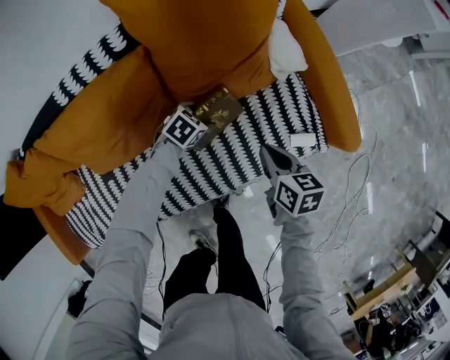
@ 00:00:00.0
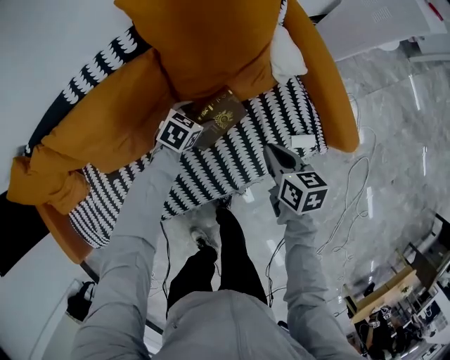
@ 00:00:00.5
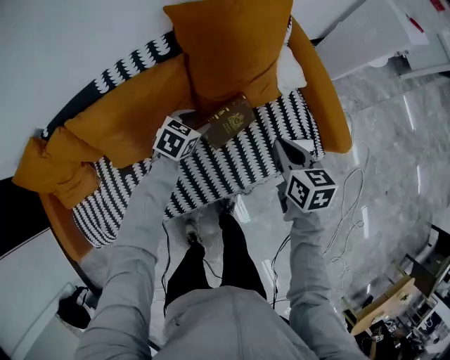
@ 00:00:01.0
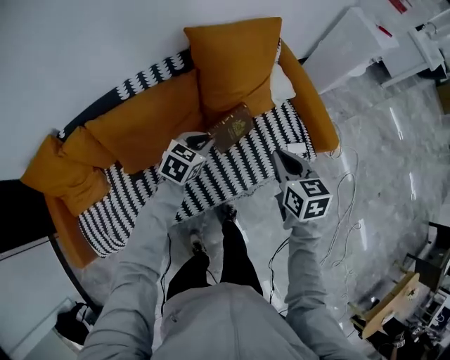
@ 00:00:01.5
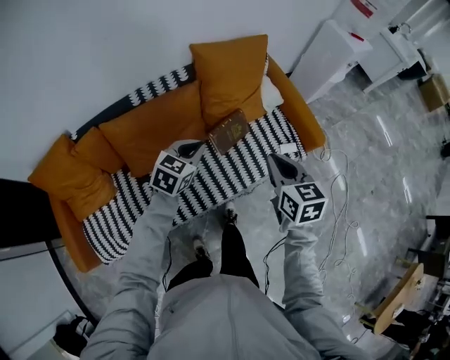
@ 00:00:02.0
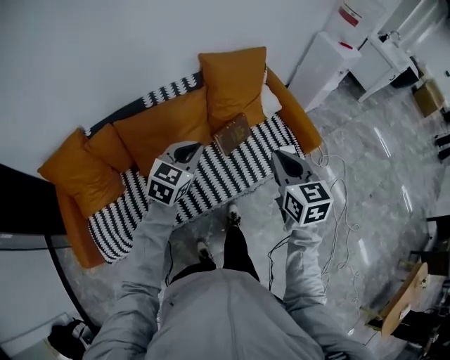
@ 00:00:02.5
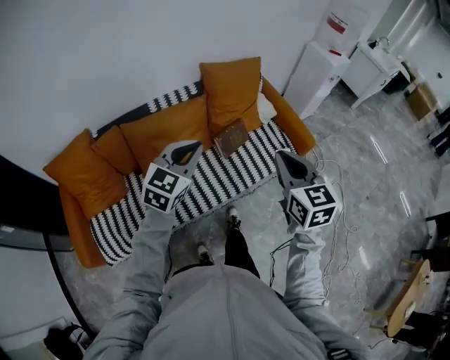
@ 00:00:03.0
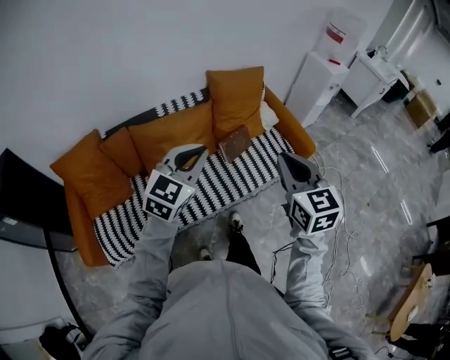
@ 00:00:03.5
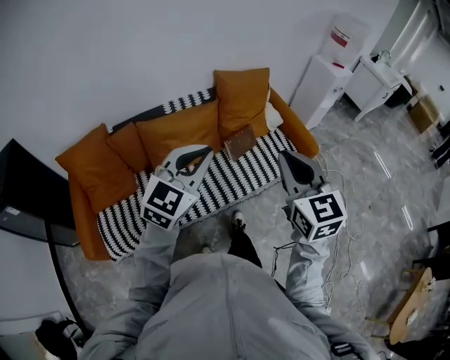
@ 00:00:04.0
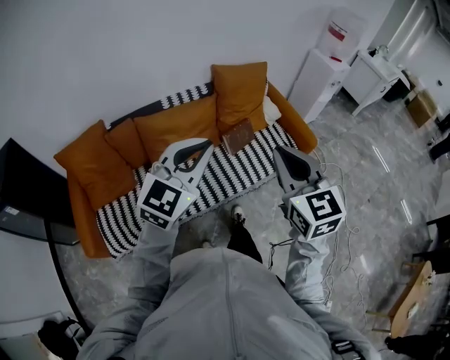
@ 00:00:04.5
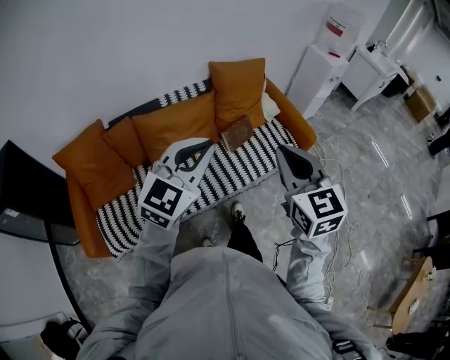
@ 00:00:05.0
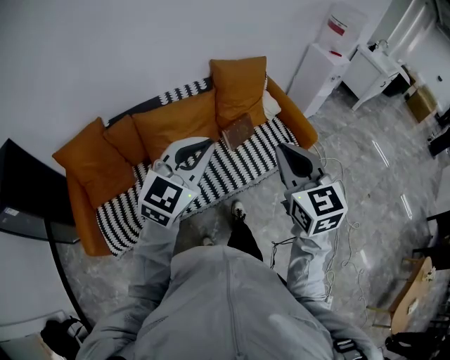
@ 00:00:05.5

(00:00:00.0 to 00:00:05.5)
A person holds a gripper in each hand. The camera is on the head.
00:00:00.0 - 00:00:02.0: The grippers both shift upward and backward by about 40 cm. The left gripper turns by roughly 30 degrees, and closes up, while the right gripper turns by roughly 30 degrees.
00:00:02.0 - 00:00:03.5: The grippers both shift upward and backward by approximately 30 cm. The left gripper turns by some 30 degrees, while the right gripper changes its angle by some 20 degrees.
00:00:03.5 - 00:00:05.5: Both grippers move backward, roughly 5 cm.

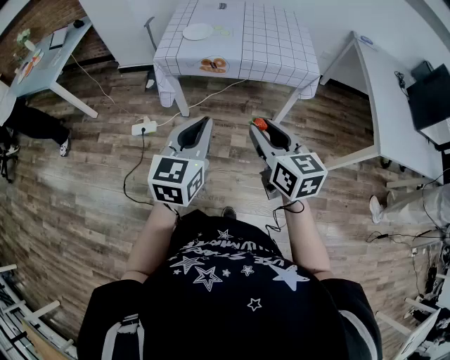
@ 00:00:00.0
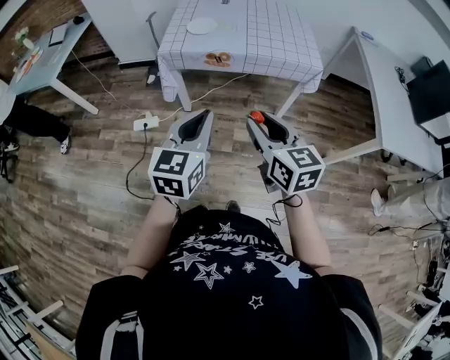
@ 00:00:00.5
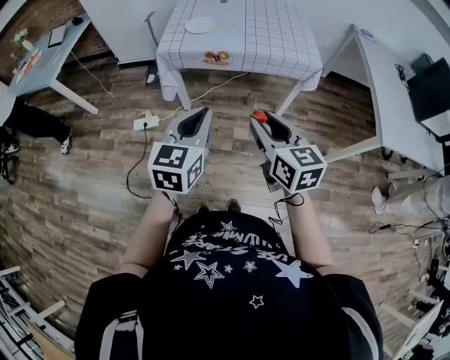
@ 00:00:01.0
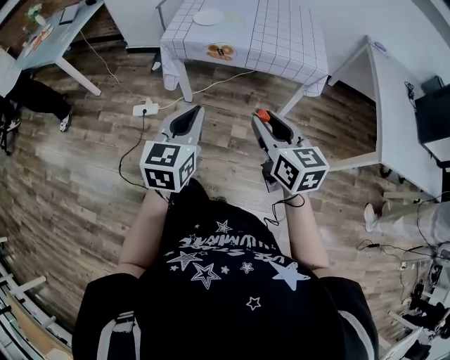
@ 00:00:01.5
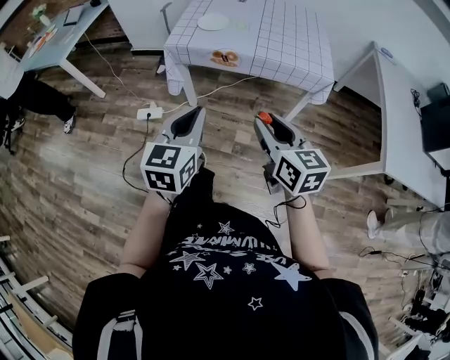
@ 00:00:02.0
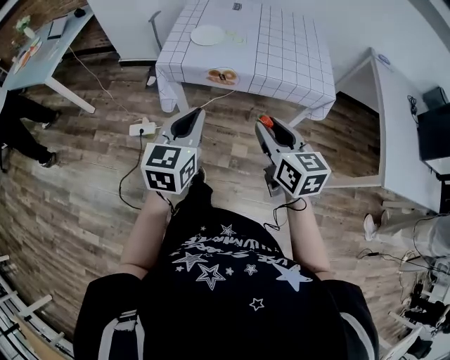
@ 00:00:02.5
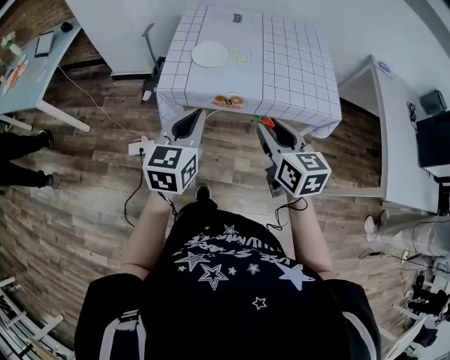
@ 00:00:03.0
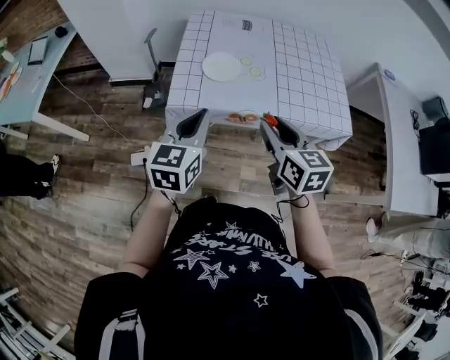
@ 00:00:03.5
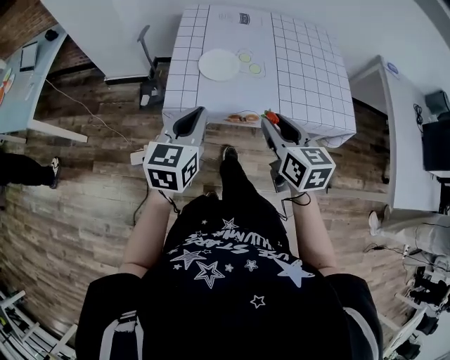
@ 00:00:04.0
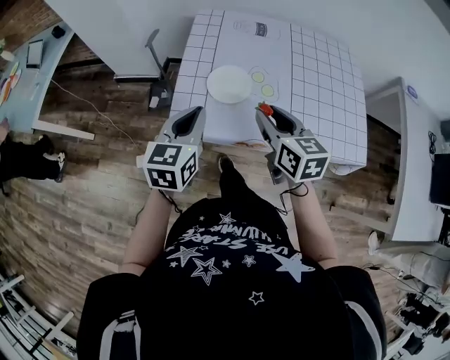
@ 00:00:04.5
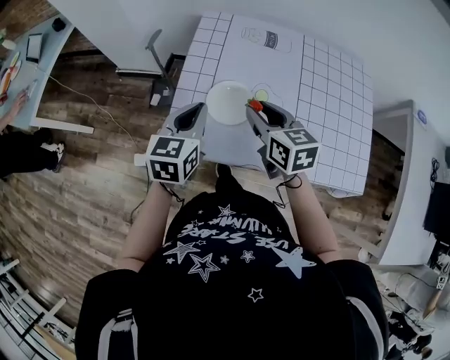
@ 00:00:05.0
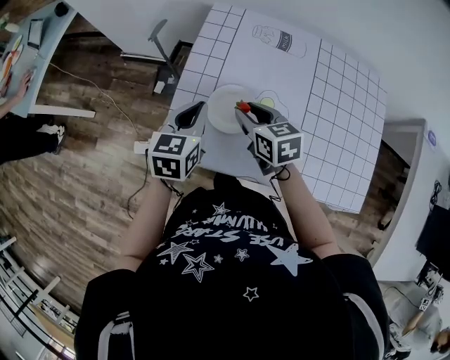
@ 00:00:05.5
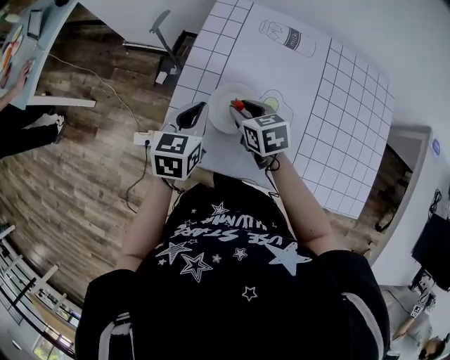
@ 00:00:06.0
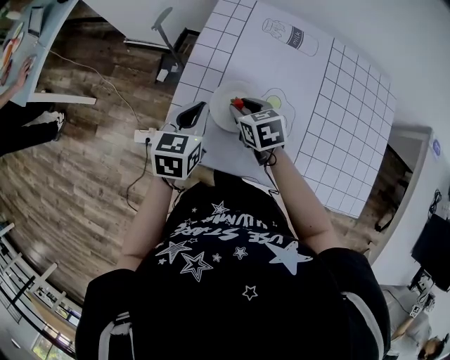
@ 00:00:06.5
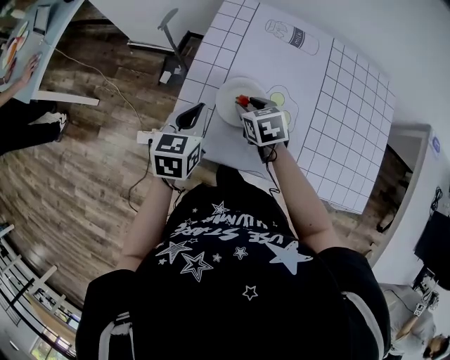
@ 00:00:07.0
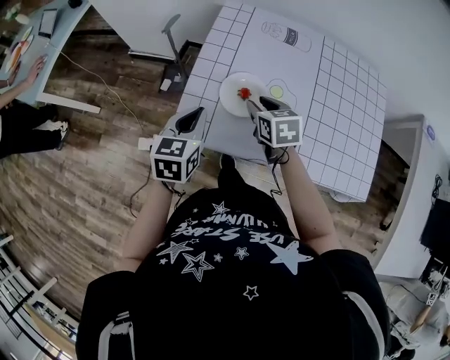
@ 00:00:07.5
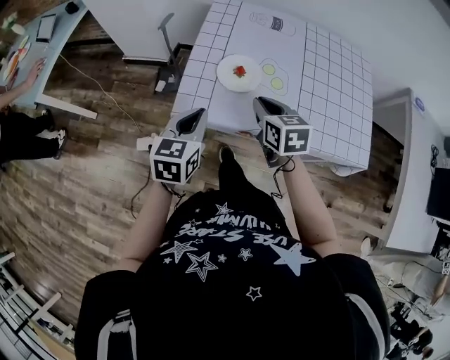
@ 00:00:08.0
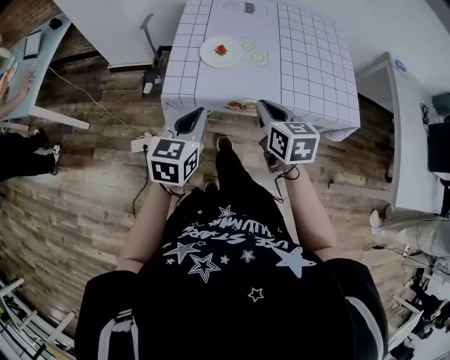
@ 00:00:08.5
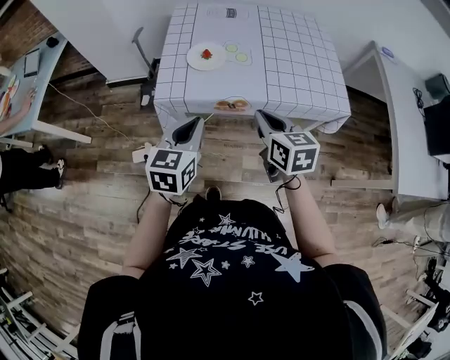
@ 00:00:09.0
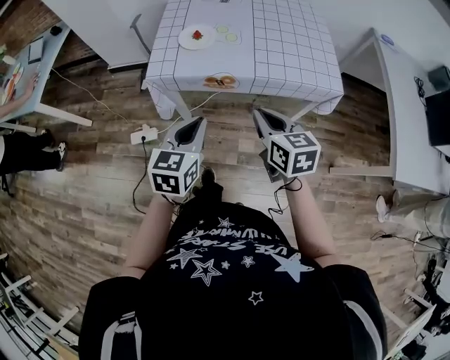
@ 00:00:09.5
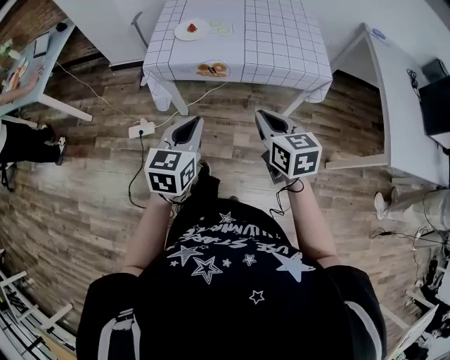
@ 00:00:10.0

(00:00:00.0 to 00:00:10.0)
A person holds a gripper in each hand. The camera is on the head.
00:00:00.0 - 00:00:02.0: The grippers make only small movements.
00:00:02.0 - 00:00:04.0: Both grippers move forward, some 35 cm.
00:00:04.0 - 00:00:06.0: Both grippers travel together forward and downward, some 30 cm. The left gripper rotates some 20 degrees. Meanwhile the right gripper rotates some 40 degrees.
00:00:06.0 - 00:00:08.0: The right gripper heads backward and upward, covering roughly 15 cm, swivels some 20 degrees, and closes up; the left gripper is displaced backward by approximately 15 cm.
00:00:08.0 - 00:00:10.0: The two grippers go roughly 35 cm backward and to the right.

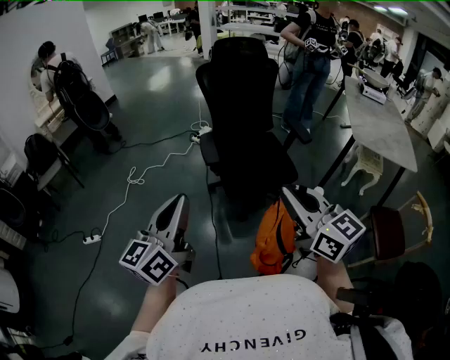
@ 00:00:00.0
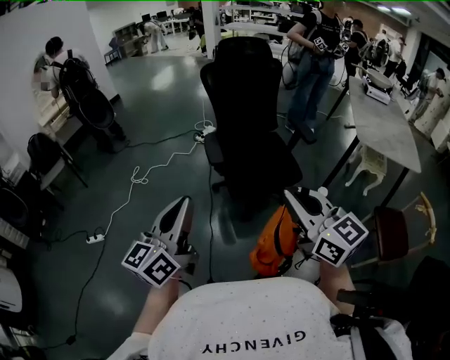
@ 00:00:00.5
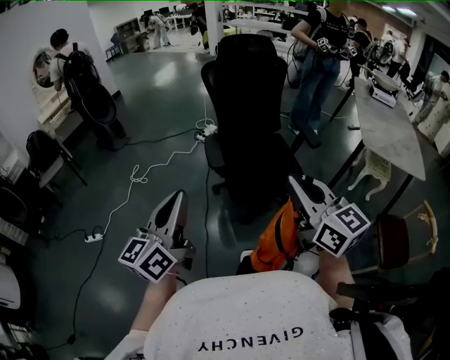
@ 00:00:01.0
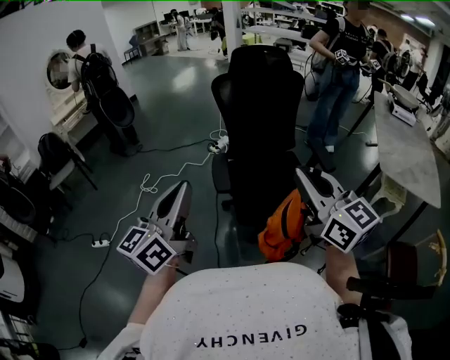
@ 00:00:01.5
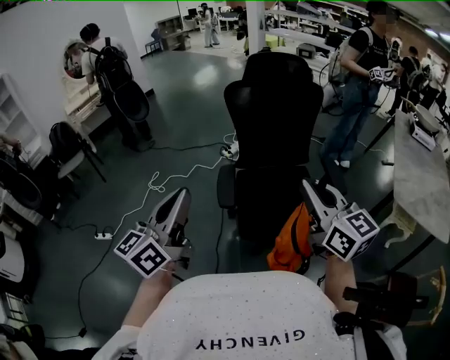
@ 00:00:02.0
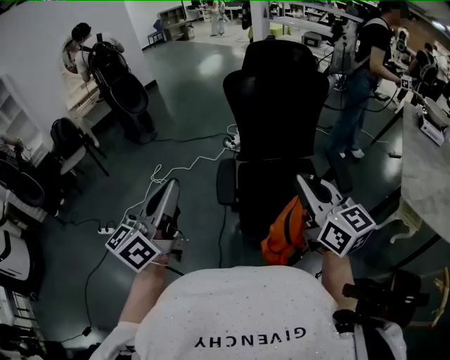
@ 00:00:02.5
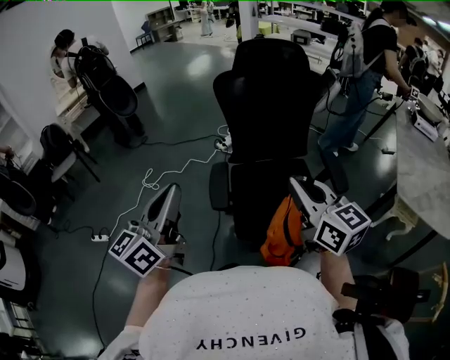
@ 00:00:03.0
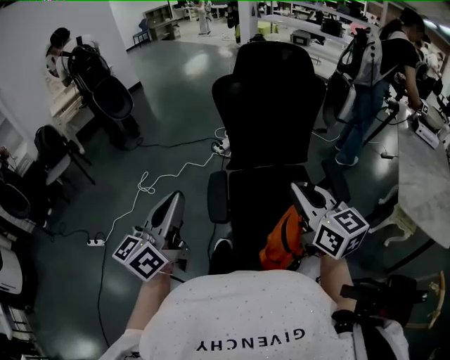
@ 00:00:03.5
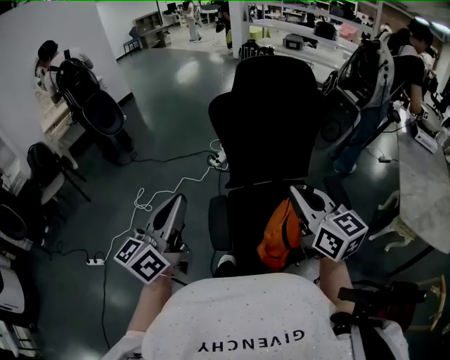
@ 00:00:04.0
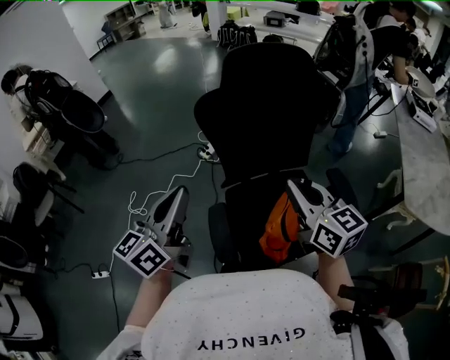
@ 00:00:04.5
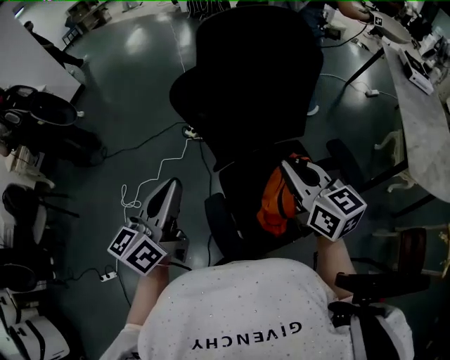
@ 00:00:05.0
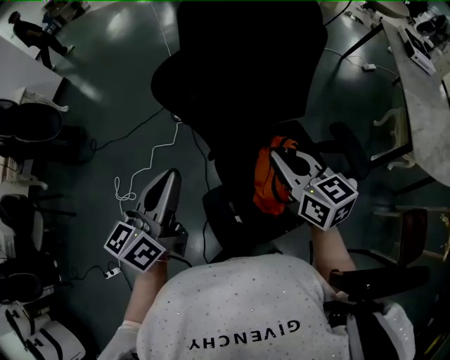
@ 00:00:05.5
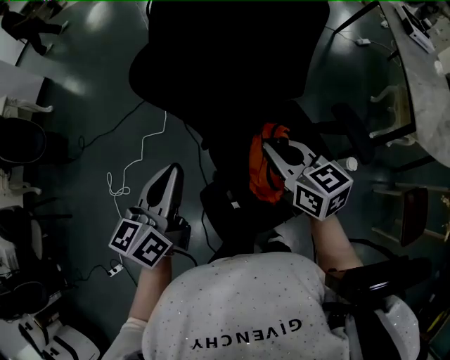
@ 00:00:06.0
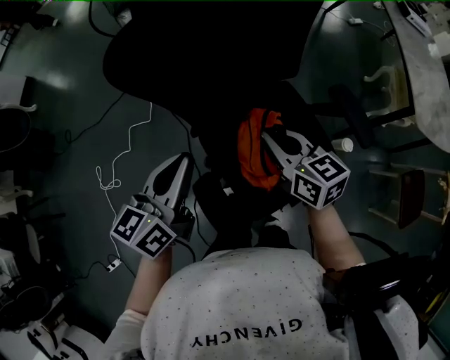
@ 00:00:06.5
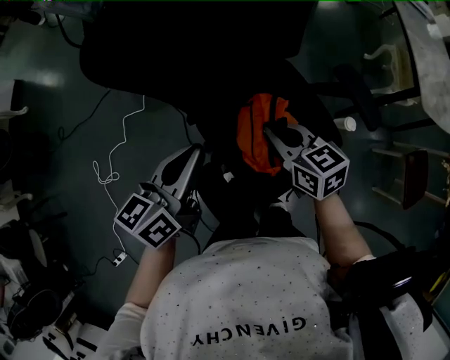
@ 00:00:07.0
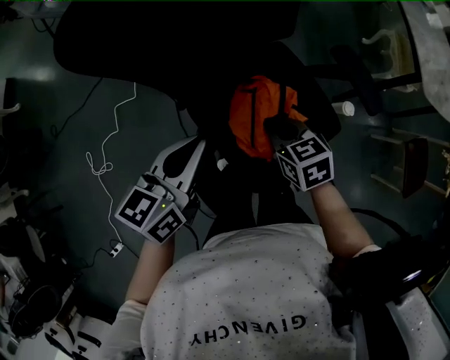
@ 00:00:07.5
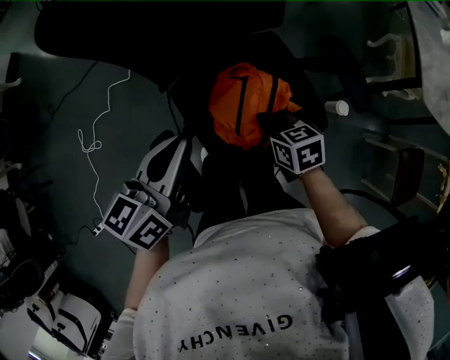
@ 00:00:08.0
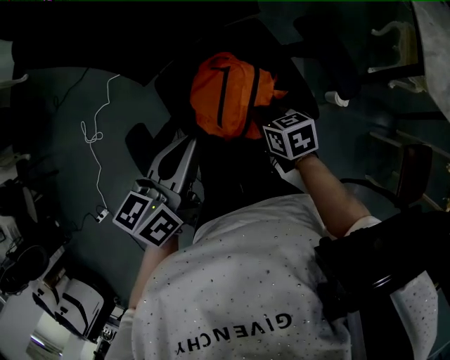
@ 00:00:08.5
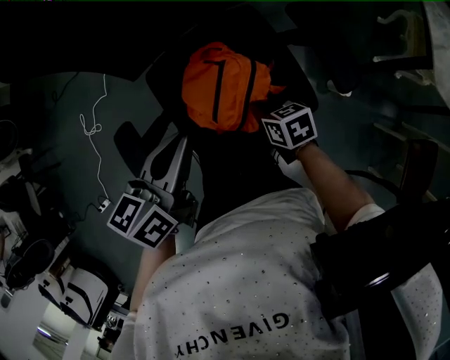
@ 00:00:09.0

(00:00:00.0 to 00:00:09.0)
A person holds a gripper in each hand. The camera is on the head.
00:00:00.0 - 00:00:02.0: The two grippers go roughly 25 cm forward.
00:00:02.0 - 00:00:04.5: The grippers both shift forward by about 30 cm.
00:00:04.5 - 00:00:07.0: The left gripper shifts about 25 cm downward and forward, and swivels approximately 40 degrees; the right gripper moves downward, some 25 cm, and changes its angle by approximately 30 degrees.
00:00:07.0 - 00:00:09.0: The left gripper travels to the right and backward by approximately 20 cm; the right gripper travels downward, to the right and backward by roughly 25 cm, and swivels roughly 30 degrees.

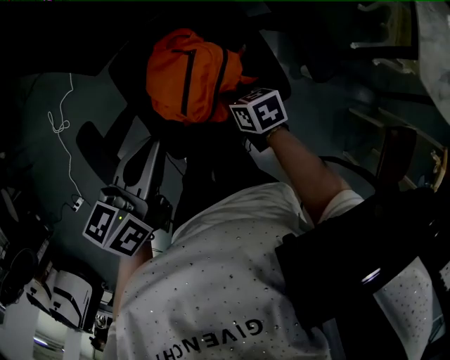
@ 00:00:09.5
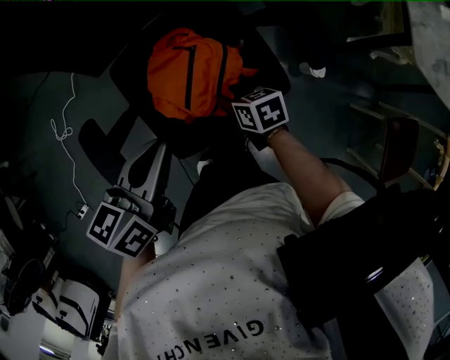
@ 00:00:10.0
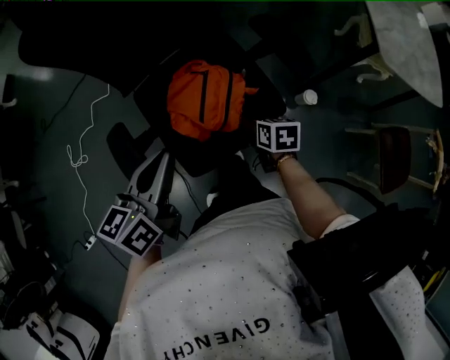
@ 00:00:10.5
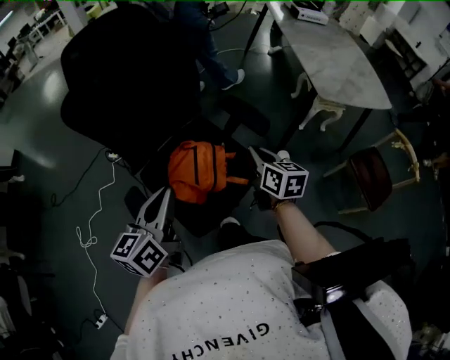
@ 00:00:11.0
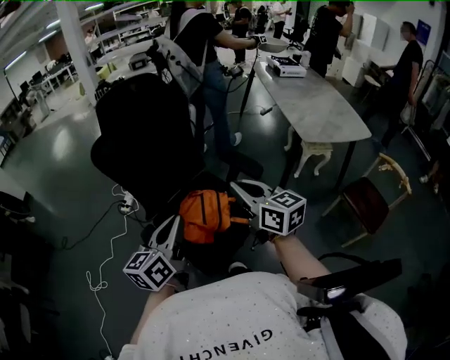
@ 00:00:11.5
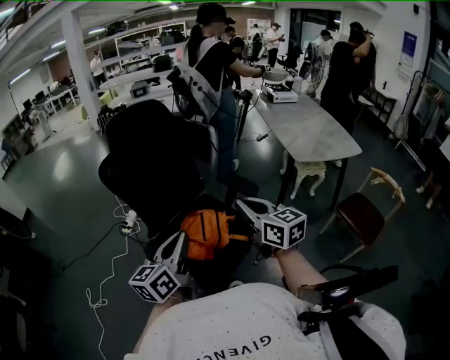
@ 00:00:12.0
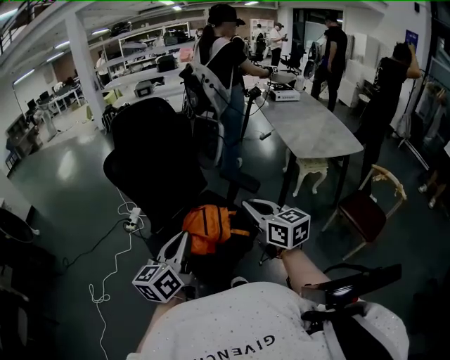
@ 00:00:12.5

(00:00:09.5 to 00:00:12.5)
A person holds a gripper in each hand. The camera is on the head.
00:00:09.5 - 00:00:11.0: The right gripper is displaced upward by about 30 cm, changes its angle by some 60 degrees, and opens, then closes once more; the left gripper moves upward, approximately 15 cm, and turns by approximately 30 degrees.
00:00:11.0 - 00:00:12.5: The right gripper moves upward and backward, some 25 cm, and rotates approximately 20 degrees. Meanwhile the left gripper goes about 15 cm backward and upward.
